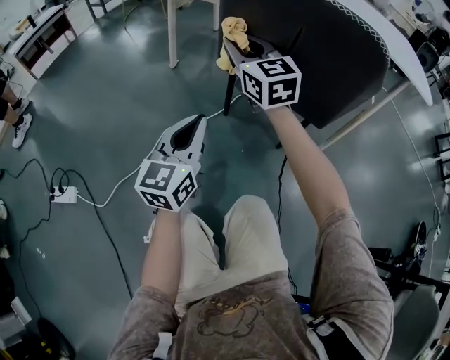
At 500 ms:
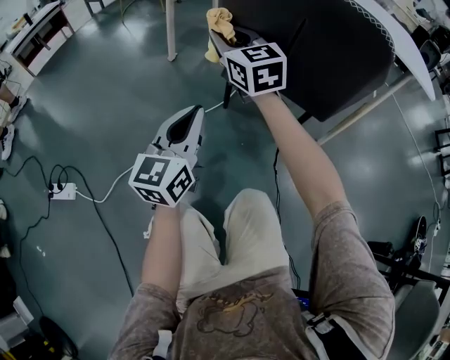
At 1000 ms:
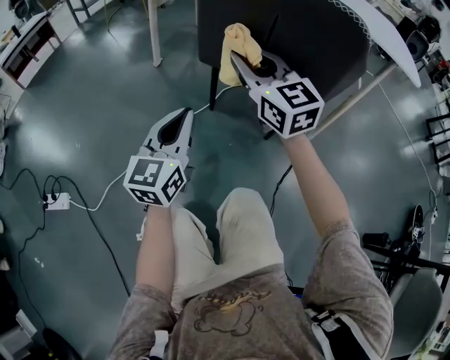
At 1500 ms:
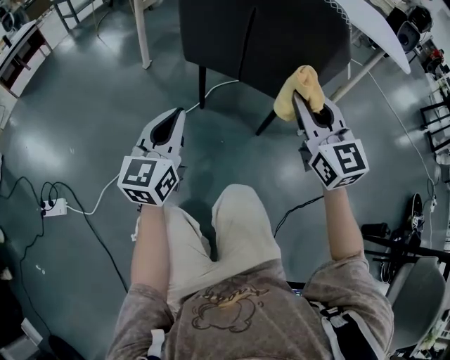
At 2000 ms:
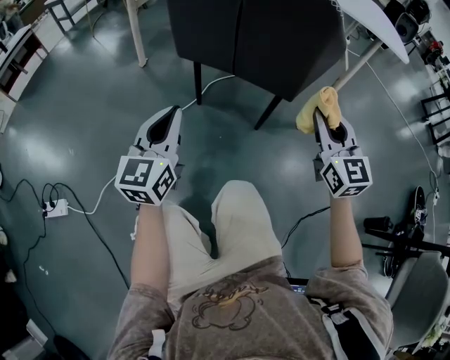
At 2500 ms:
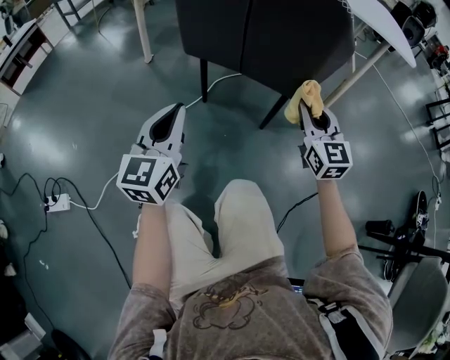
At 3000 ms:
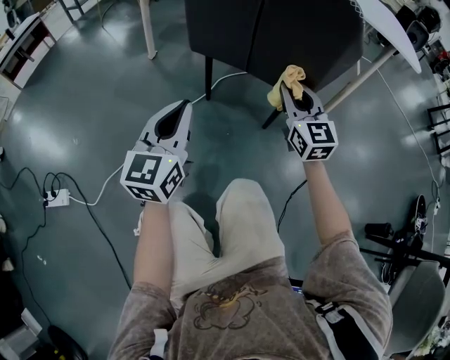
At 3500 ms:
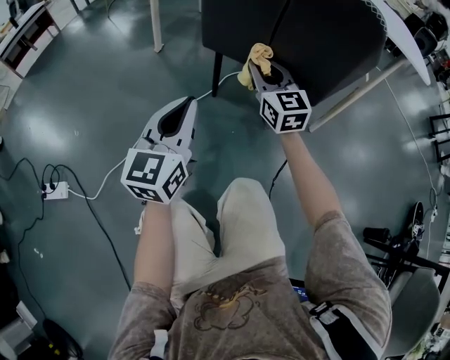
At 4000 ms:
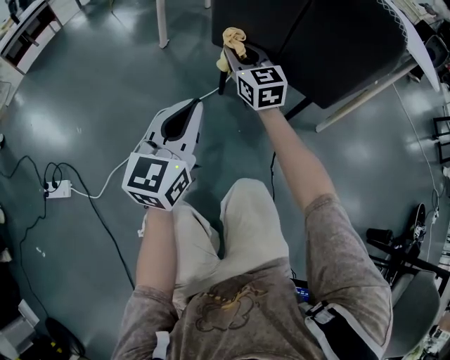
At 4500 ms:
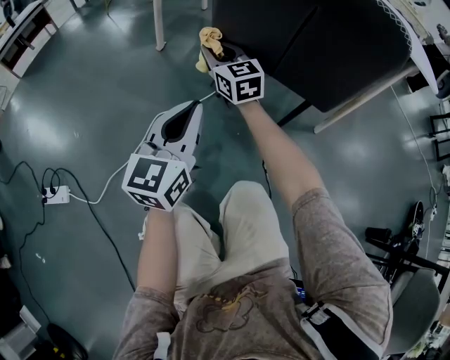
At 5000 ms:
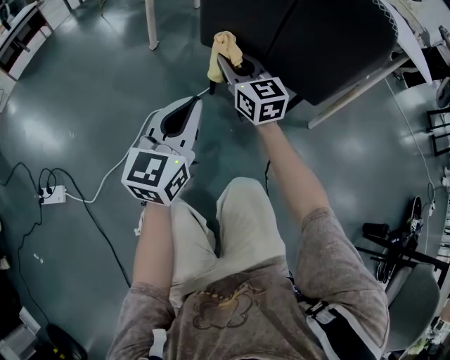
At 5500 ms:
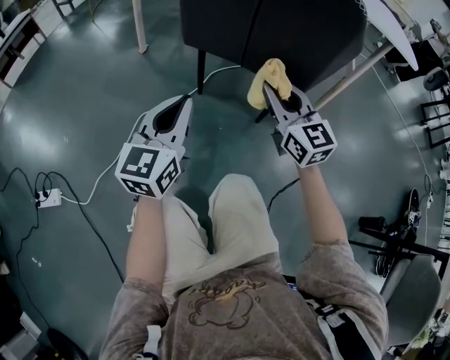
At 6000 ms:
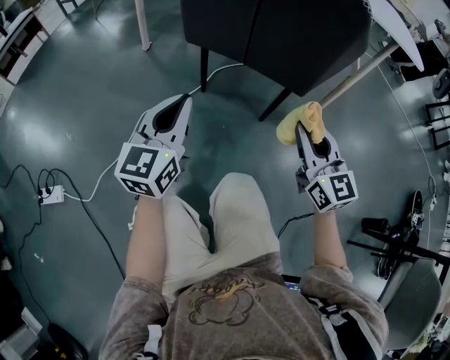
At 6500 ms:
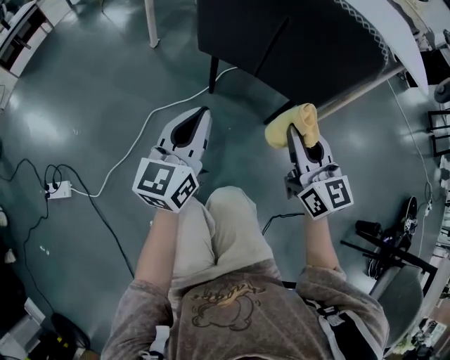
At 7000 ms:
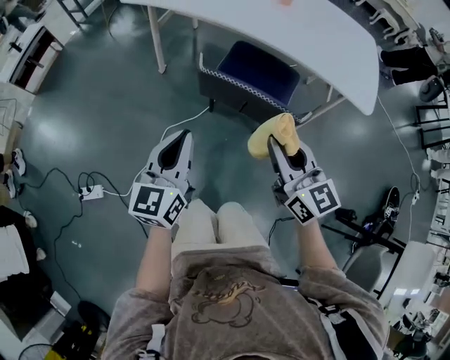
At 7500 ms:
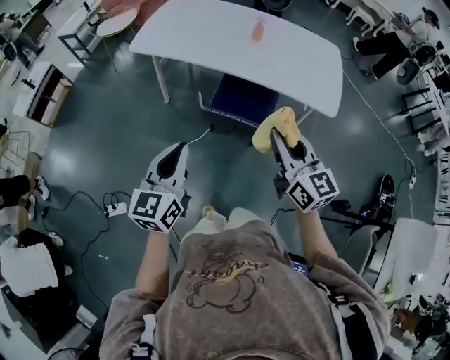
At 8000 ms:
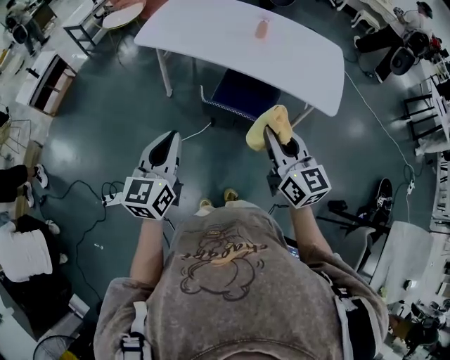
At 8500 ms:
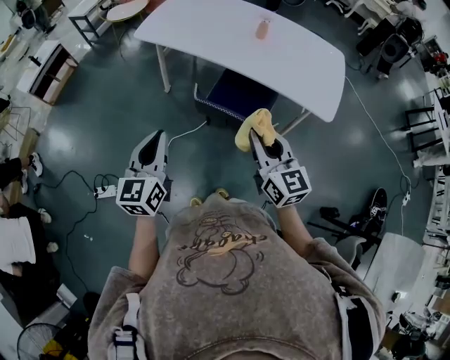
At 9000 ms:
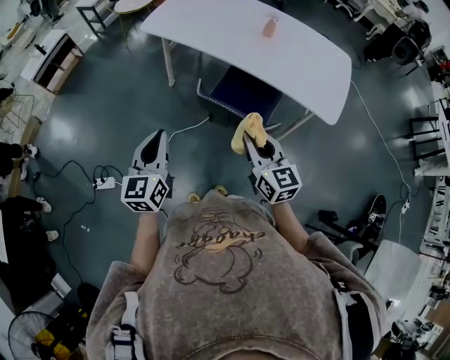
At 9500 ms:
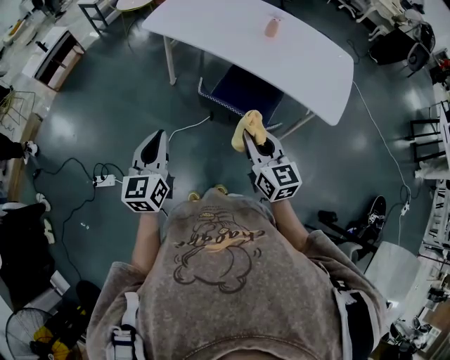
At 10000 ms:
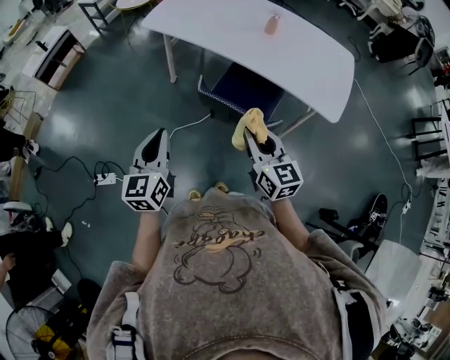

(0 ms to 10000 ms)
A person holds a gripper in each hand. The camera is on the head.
0 ms - 2000 ms: The right gripper moves to the right and backward, about 35 cm, and turns by roughly 20 degrees.
2000 ms - 4000 ms: The right gripper moves to the left and forward, approximately 35 cm.
4000 ms - 6000 ms: The right gripper heads backward and to the right, covering some 30 cm.
6000 ms - 8000 ms: The grippers both shift upward by some 50 cm.
8000 ms - 10000 ms: Both grippers move downward, some 5 cm.

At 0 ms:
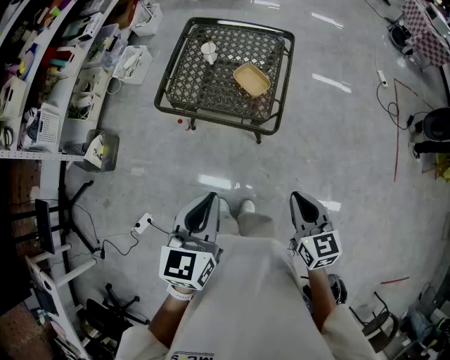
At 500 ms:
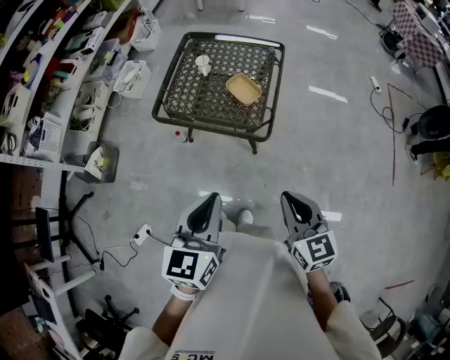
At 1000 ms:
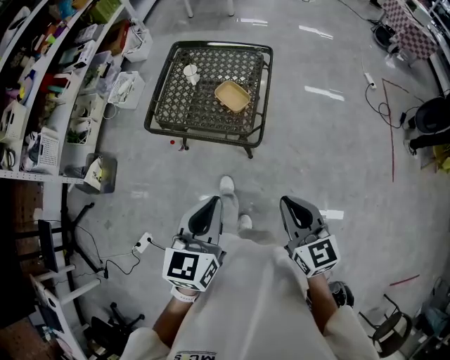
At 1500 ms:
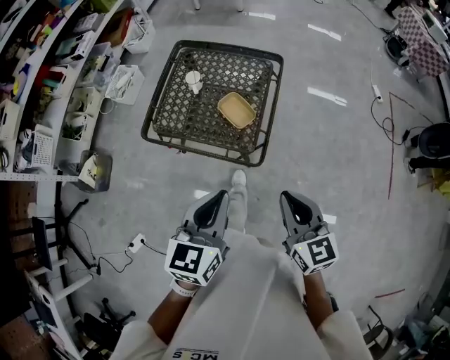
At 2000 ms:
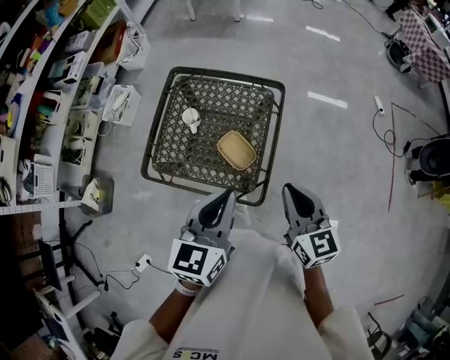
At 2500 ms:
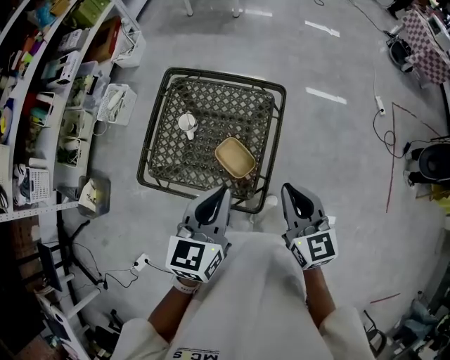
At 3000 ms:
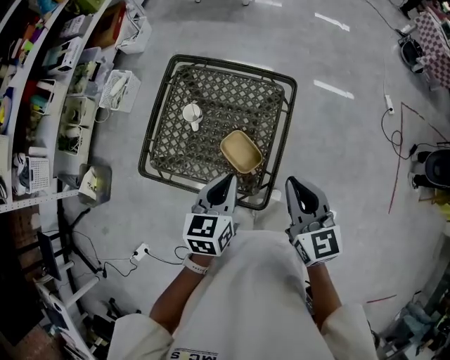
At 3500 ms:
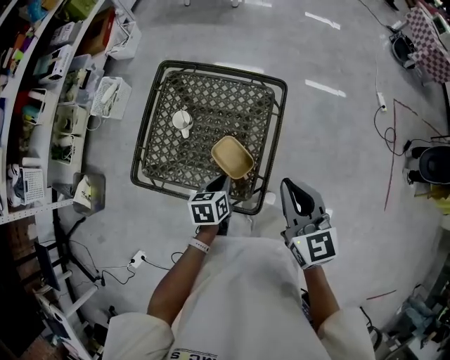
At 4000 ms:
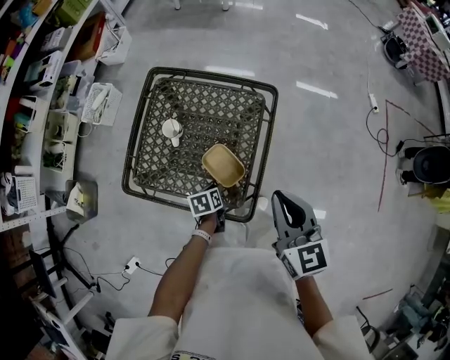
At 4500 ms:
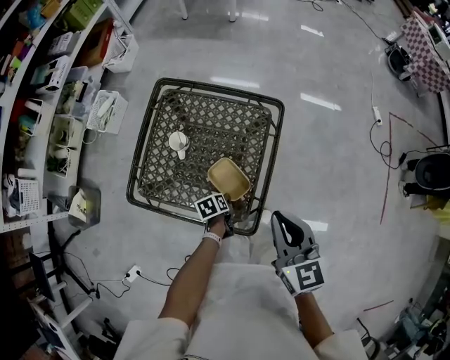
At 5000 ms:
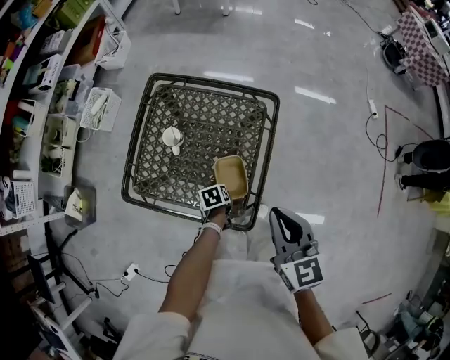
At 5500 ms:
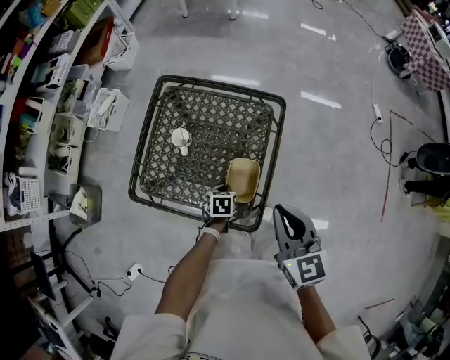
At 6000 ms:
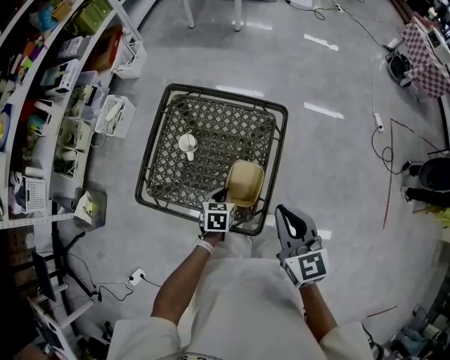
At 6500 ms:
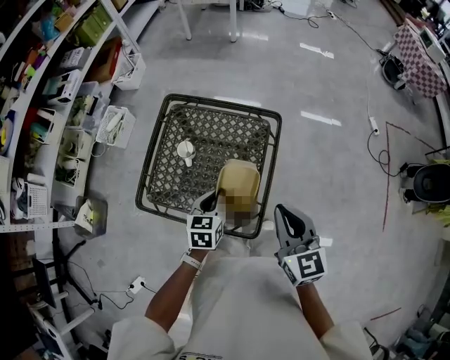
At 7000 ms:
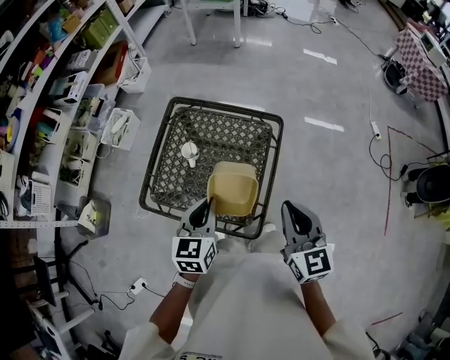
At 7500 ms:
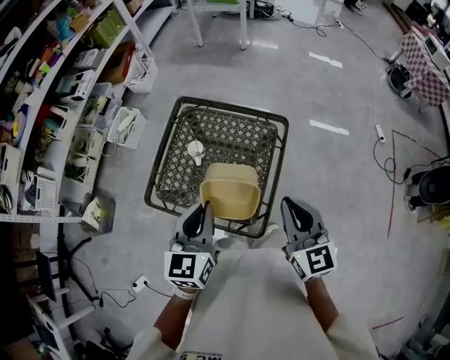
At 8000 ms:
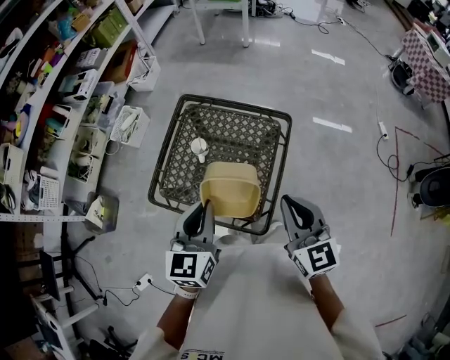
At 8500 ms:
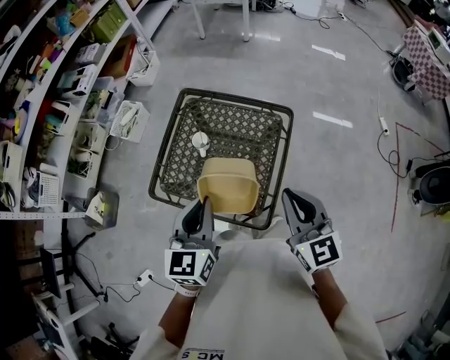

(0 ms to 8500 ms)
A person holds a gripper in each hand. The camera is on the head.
0 ms - 2000 ms: Both grippers move forward, roughly 30 cm.
2000 ms - 4000 ms: The right gripper is displaced forward by about 10 cm; the left gripper travels downward by approximately 40 cm, and points its fingers roughly 40 degrees further downward.
4000 ms - 6500 ms: The left gripper shifts roughly 20 cm upward, and rotates roughly 40 degrees.
6500 ms - 8500 ms: The right gripper moves some 5 cm. The left gripper is displaced upward by about 20 cm, and rotates approximately 20 degrees.

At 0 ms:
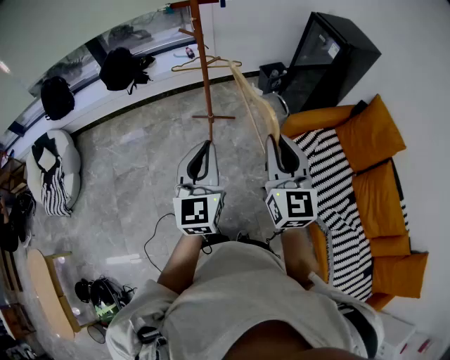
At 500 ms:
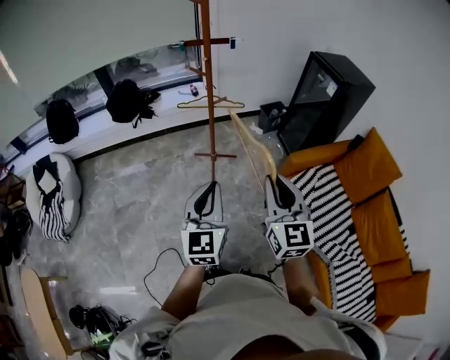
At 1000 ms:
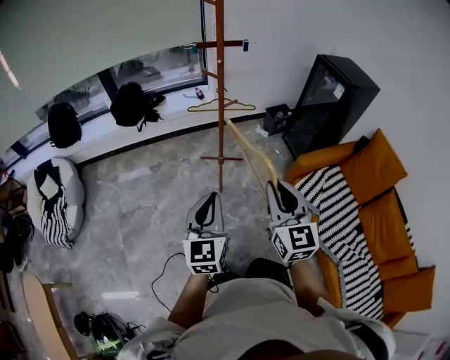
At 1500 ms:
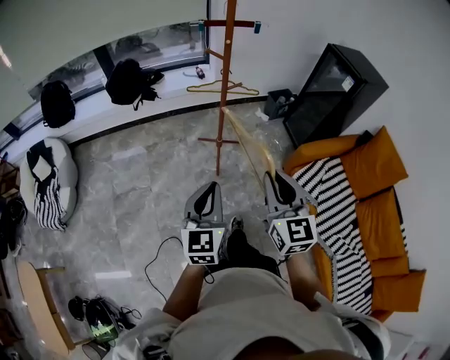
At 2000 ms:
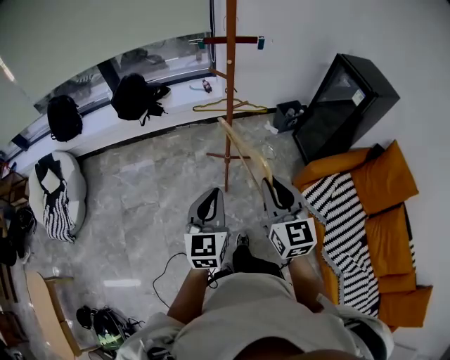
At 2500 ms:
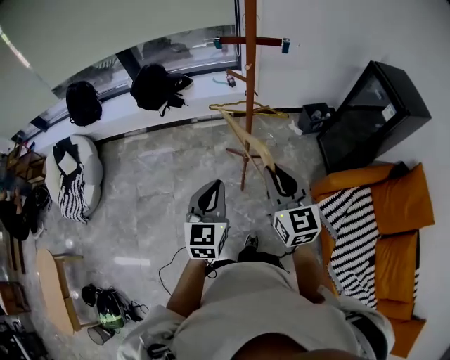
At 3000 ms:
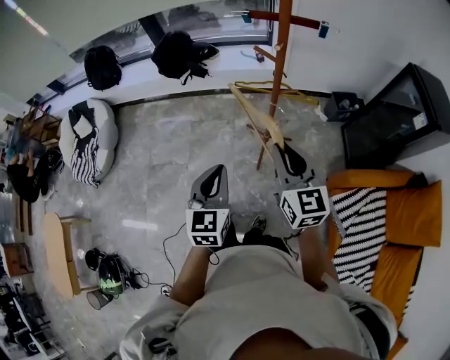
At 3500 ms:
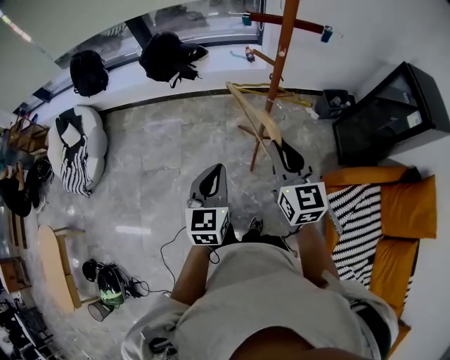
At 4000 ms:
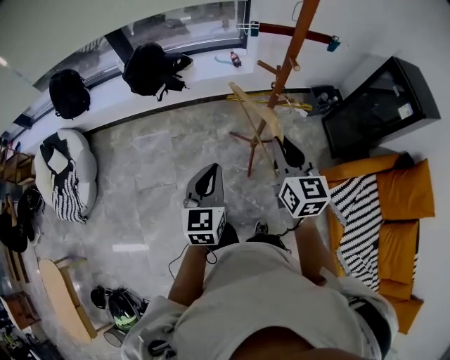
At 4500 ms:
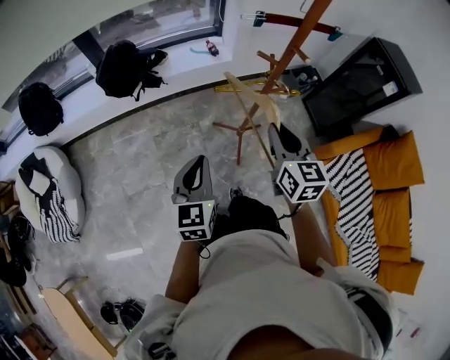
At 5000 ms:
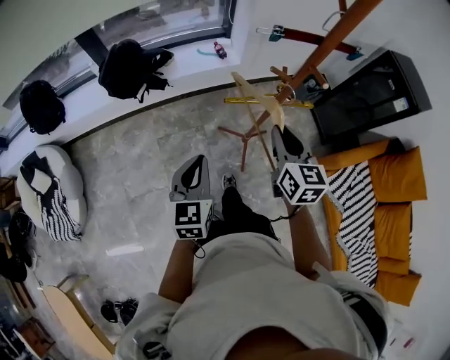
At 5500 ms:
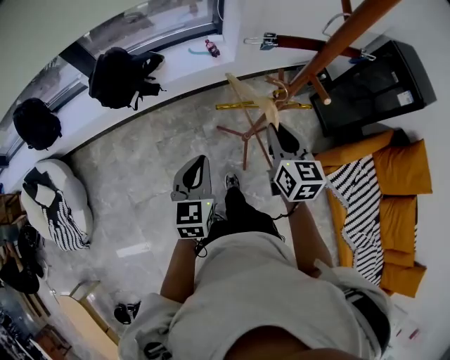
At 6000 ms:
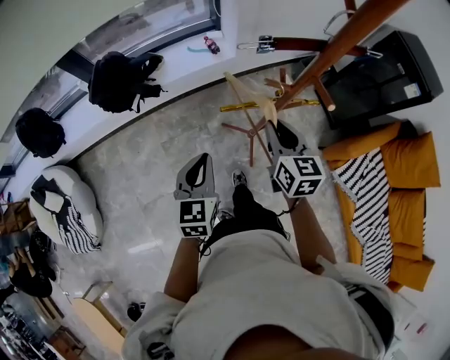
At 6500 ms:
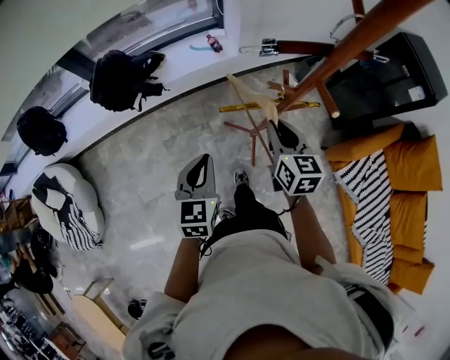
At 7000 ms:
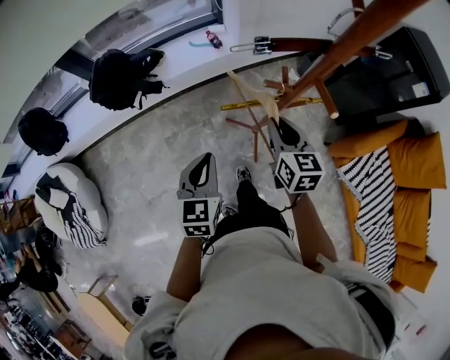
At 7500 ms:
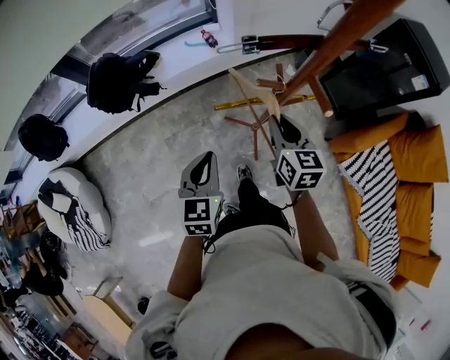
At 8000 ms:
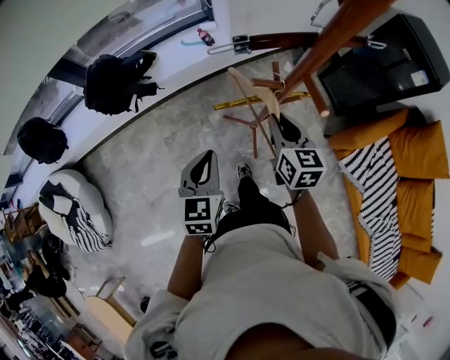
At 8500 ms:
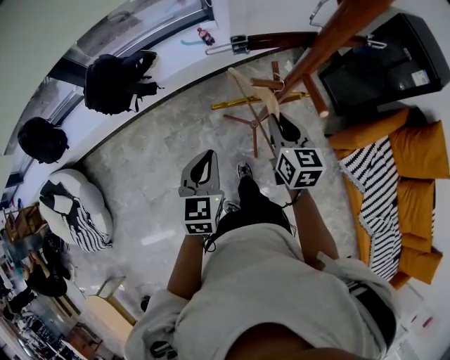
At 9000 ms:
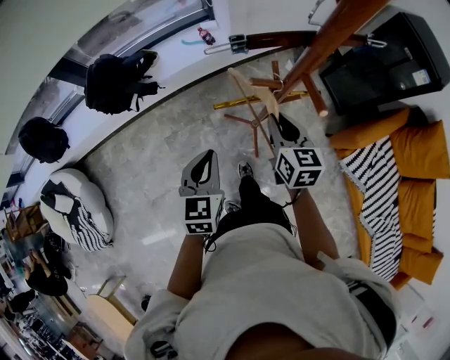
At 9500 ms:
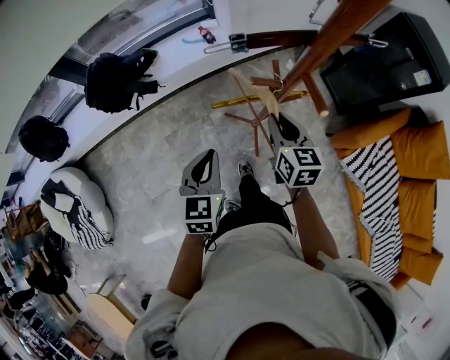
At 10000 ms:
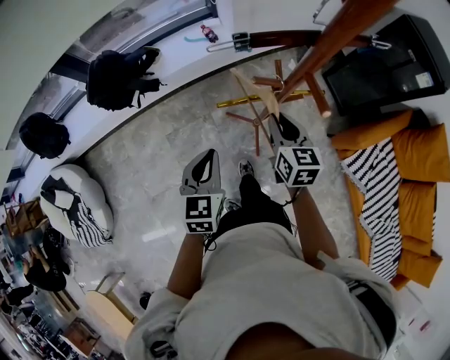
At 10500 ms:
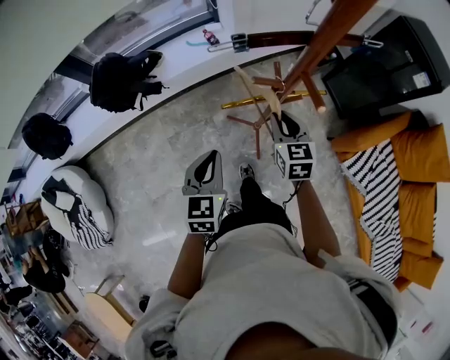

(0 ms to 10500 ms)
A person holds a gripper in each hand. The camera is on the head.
0 ms - 2000 ms: Both grippers move to the left, forward and downward, about 20 cm.
2000 ms - 4000 ms: The right gripper travels forward by roughly 25 cm. The left gripper goes some 25 cm forward and to the left.
4000 ms - 6500 ms: The left gripper is displaced forward by roughly 20 cm; the right gripper shifts approximately 20 cm forward and downward.
6500 ms - 8500 ms: The grippers stay close to where they were, moving slightly.
8500 ms - 10500 ms: The grippers make only small movements.
